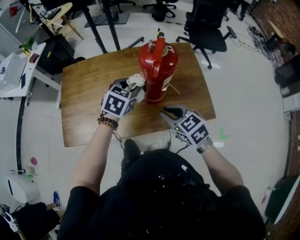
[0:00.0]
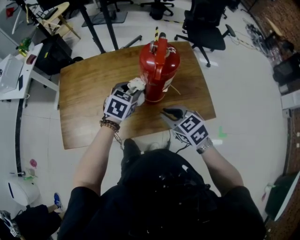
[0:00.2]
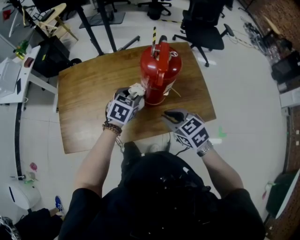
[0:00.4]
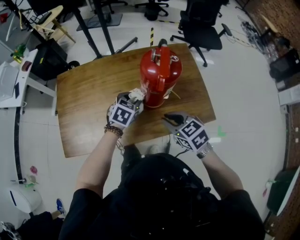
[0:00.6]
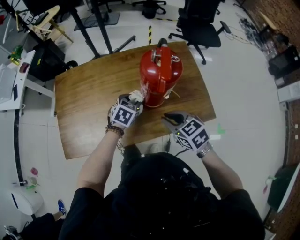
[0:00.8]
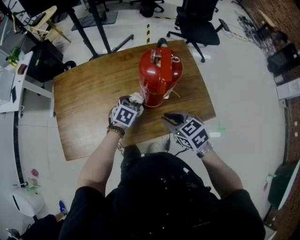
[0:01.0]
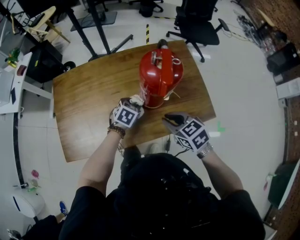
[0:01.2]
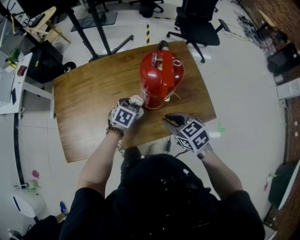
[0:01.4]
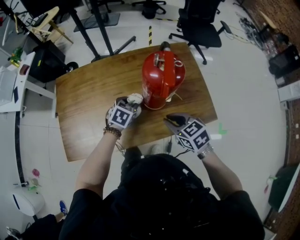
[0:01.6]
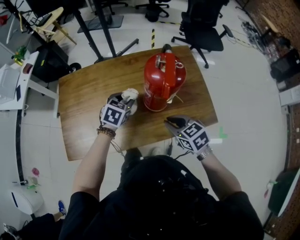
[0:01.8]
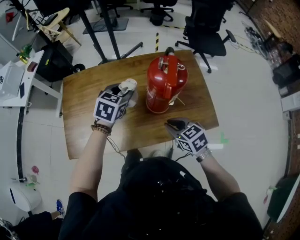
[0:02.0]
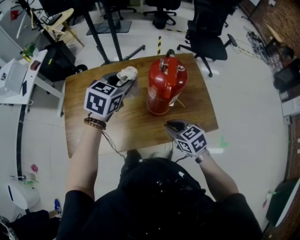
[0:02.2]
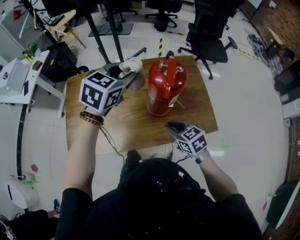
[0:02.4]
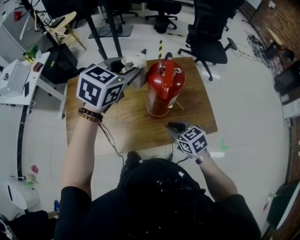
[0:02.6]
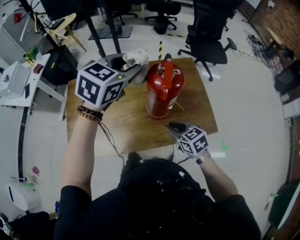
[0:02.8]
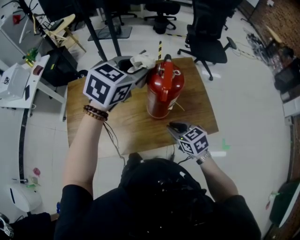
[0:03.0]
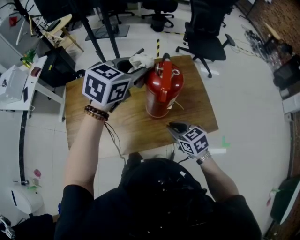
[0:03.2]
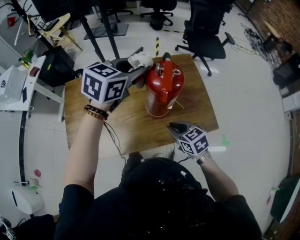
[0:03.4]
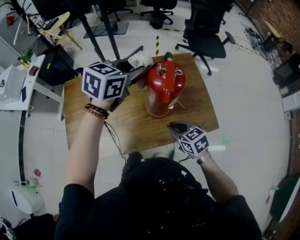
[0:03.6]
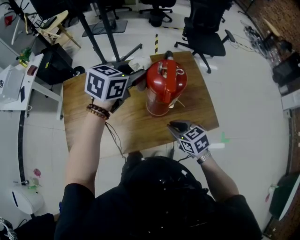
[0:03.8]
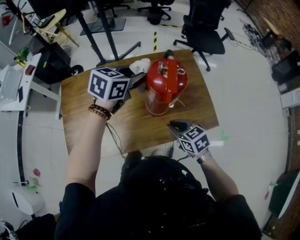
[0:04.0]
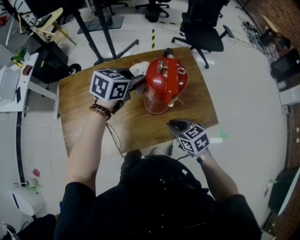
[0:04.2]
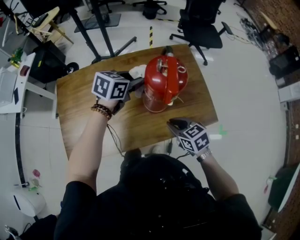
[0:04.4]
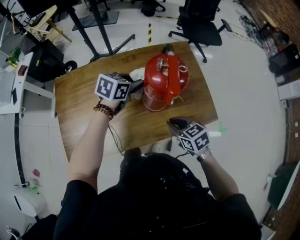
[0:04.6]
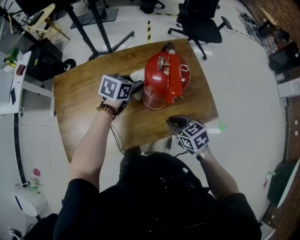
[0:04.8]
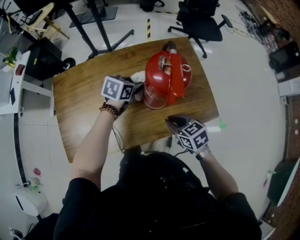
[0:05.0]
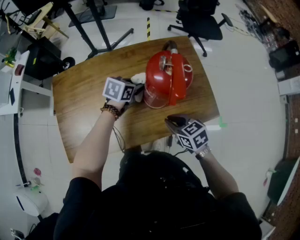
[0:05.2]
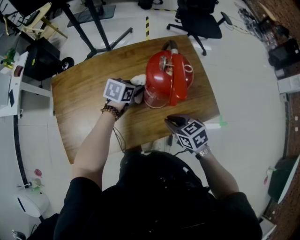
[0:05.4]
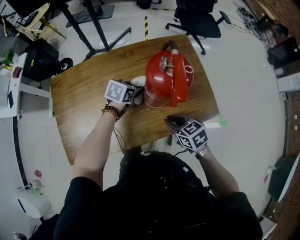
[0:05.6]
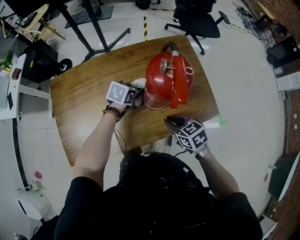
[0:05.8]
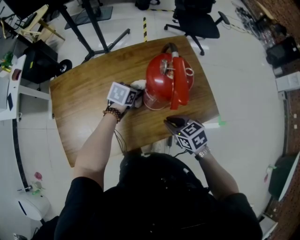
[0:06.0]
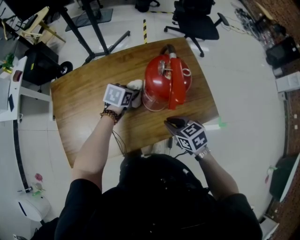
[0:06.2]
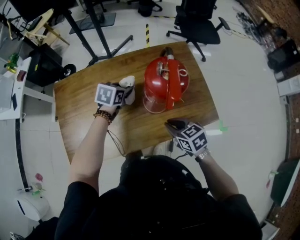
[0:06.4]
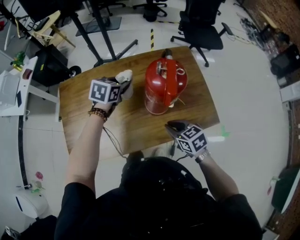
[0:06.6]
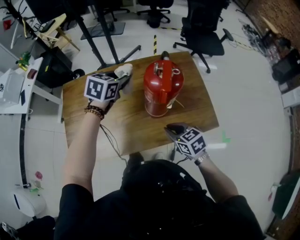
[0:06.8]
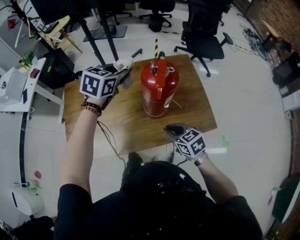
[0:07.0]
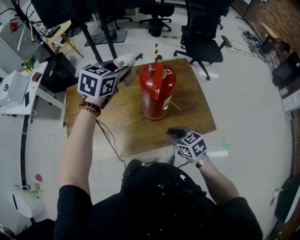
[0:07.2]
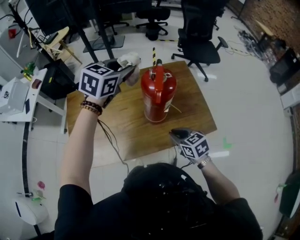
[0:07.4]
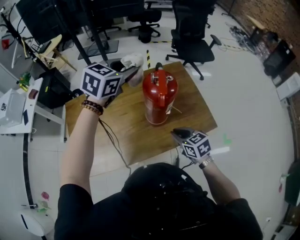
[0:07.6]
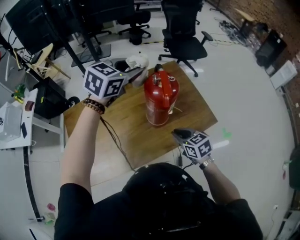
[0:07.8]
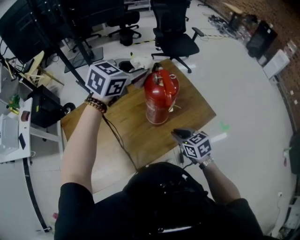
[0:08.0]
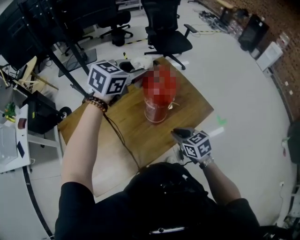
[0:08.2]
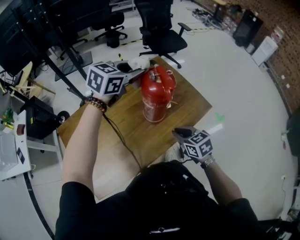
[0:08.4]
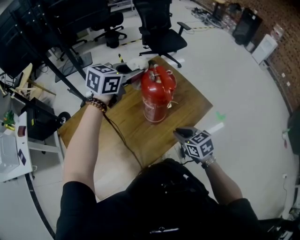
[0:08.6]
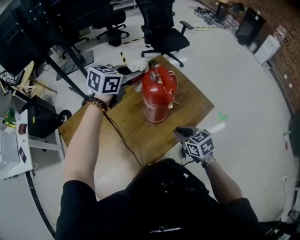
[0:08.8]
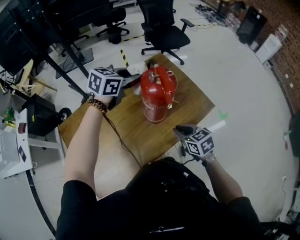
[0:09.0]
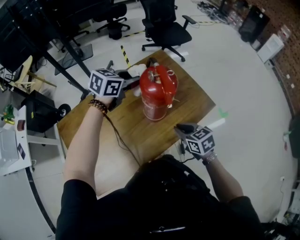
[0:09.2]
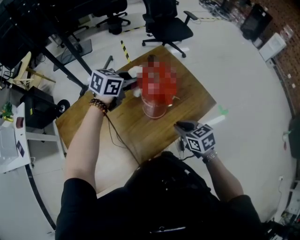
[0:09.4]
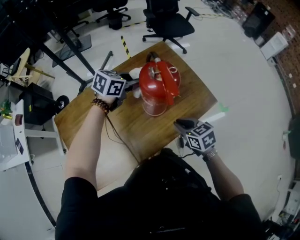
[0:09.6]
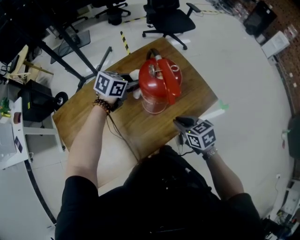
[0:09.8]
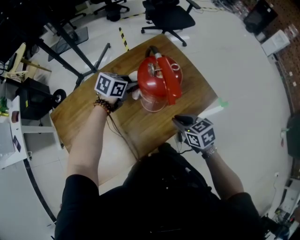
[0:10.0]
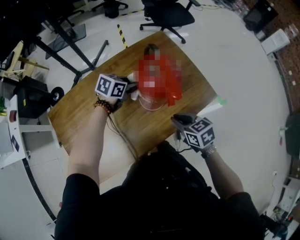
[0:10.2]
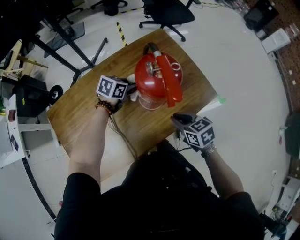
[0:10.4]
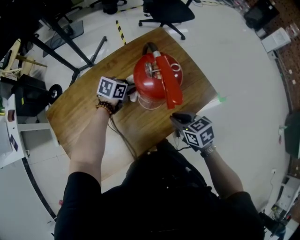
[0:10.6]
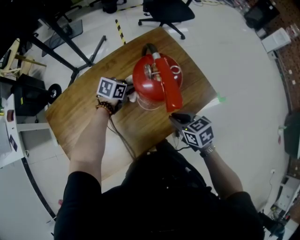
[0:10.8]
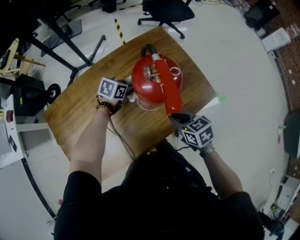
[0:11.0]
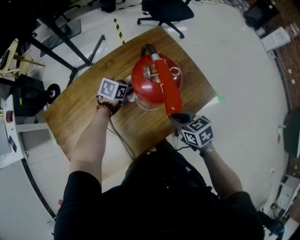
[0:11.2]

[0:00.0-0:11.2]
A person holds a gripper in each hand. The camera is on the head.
0:00.0 to 0:01.6: The left gripper heads downward, covering some 15 cm.
0:01.6 to 0:03.2: The left gripper moves upward, some 30 cm, and rotates roughly 30 degrees.
0:03.2 to 0:04.8: The left gripper is displaced downward by approximately 25 cm, and changes its angle by approximately 30 degrees.
0:04.8 to 0:06.4: The left gripper goes about 5 cm to the left.
0:06.4 to 0:08.0: The left gripper is displaced upward by roughly 30 cm, and rotates about 50 degrees.
0:08.0 to 0:09.6: The left gripper moves downward, approximately 20 cm, and turns by some 20 degrees.
0:09.6 to 0:11.2: The left gripper heads downward, covering some 15 cm.

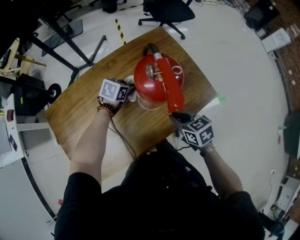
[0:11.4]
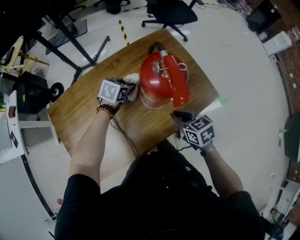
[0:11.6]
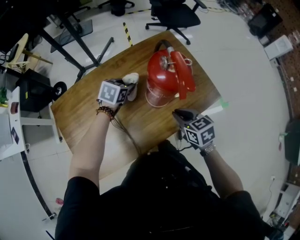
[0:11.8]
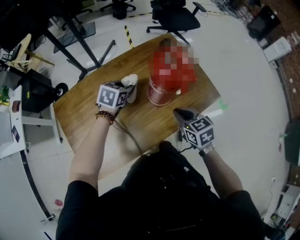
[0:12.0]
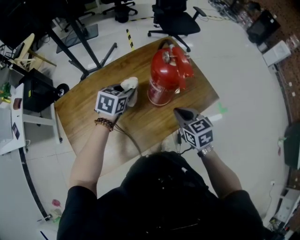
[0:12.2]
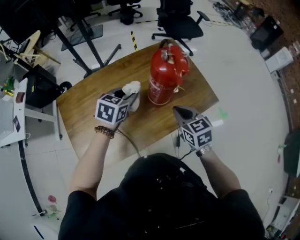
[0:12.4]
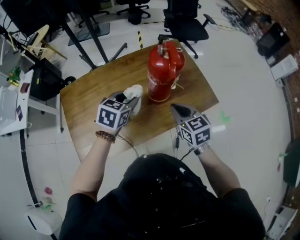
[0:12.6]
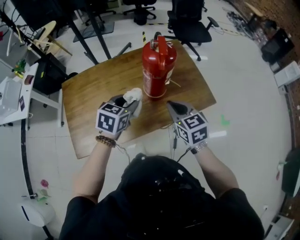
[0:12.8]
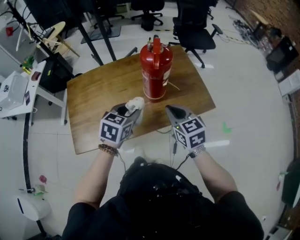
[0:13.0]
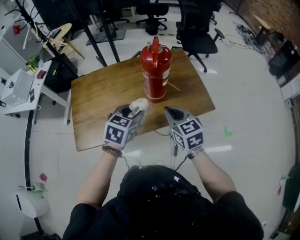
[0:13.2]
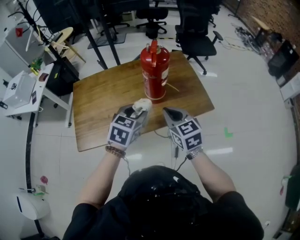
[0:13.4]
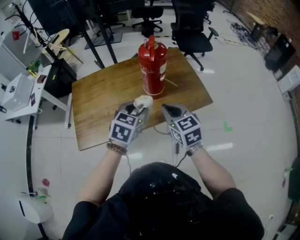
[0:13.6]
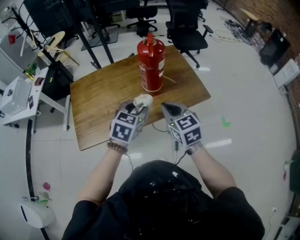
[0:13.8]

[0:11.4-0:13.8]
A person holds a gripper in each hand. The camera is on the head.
0:11.4 to 0:12.6: The left gripper heads backward and upward, covering approximately 25 cm, and changes its angle by roughly 20 degrees, while the right gripper heads upward, covering about 10 cm, and swivels roughly 20 degrees.
0:12.6 to 0:13.8: The right gripper shifts about 15 cm backward and upward. Meanwhile the left gripper goes about 20 cm backward and to the right.

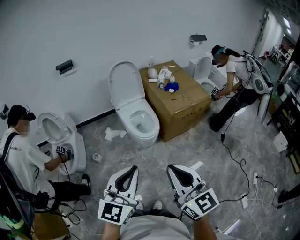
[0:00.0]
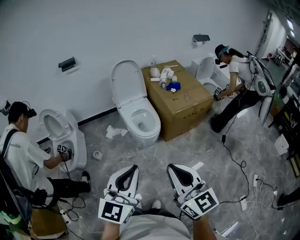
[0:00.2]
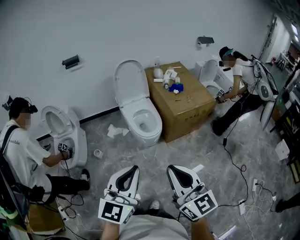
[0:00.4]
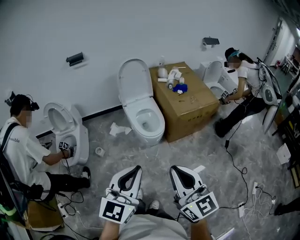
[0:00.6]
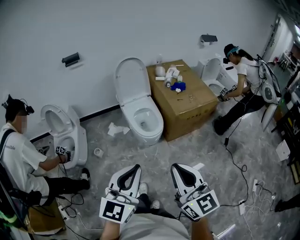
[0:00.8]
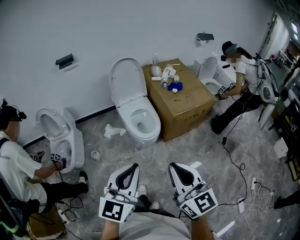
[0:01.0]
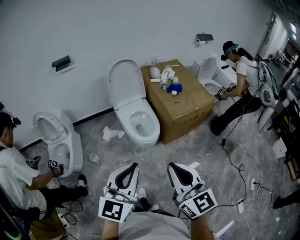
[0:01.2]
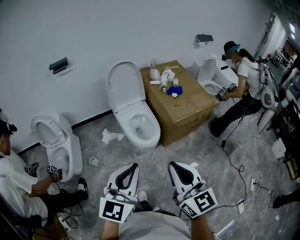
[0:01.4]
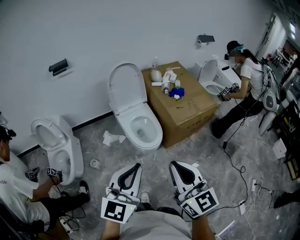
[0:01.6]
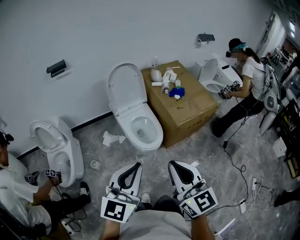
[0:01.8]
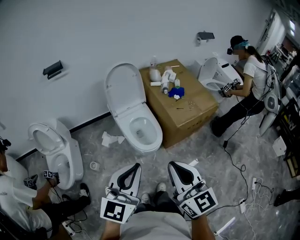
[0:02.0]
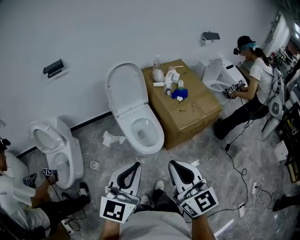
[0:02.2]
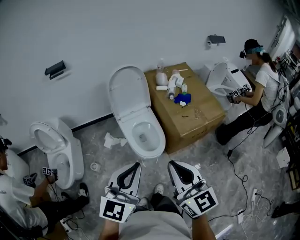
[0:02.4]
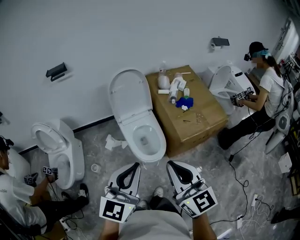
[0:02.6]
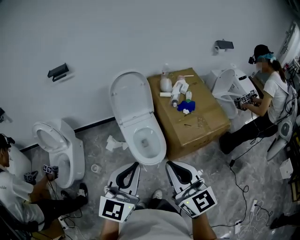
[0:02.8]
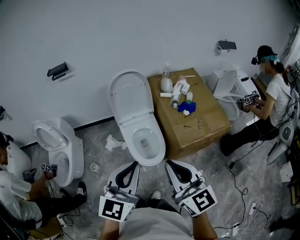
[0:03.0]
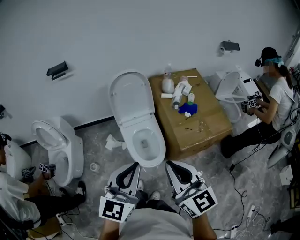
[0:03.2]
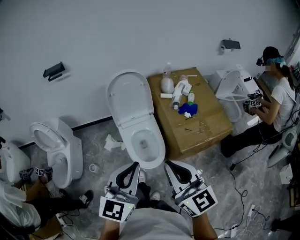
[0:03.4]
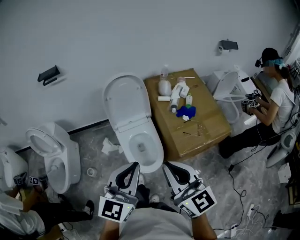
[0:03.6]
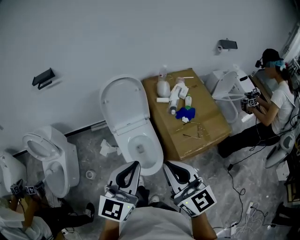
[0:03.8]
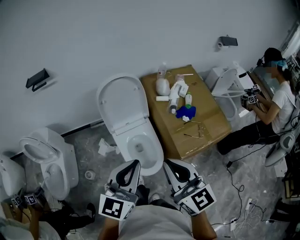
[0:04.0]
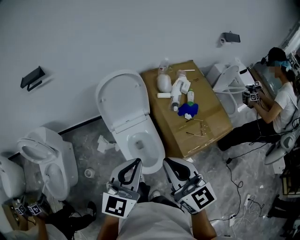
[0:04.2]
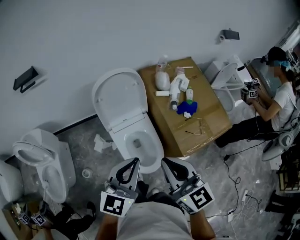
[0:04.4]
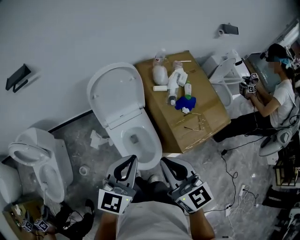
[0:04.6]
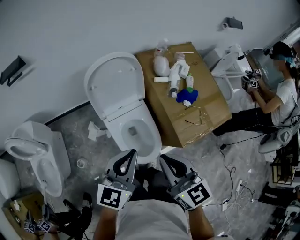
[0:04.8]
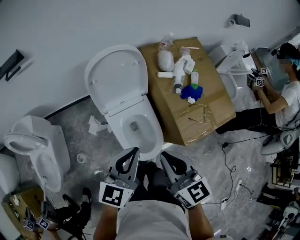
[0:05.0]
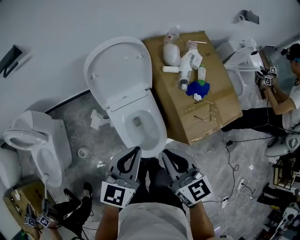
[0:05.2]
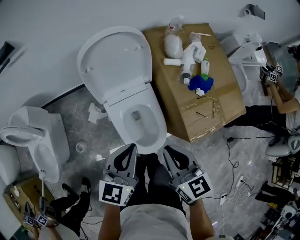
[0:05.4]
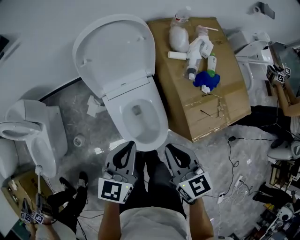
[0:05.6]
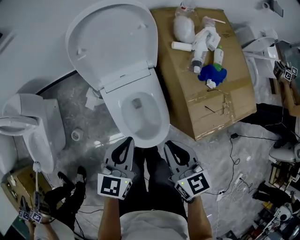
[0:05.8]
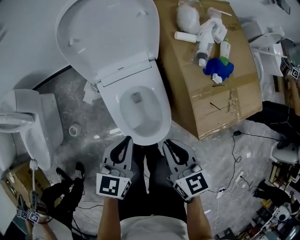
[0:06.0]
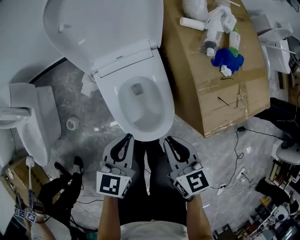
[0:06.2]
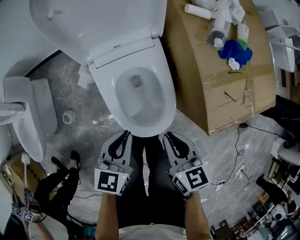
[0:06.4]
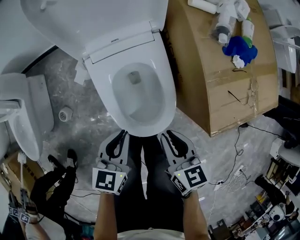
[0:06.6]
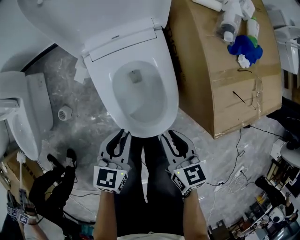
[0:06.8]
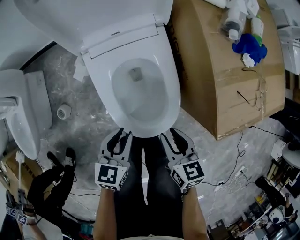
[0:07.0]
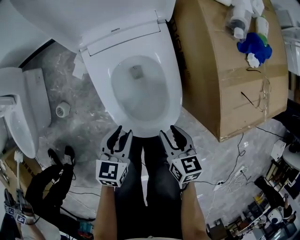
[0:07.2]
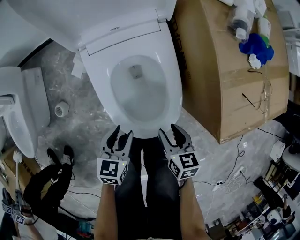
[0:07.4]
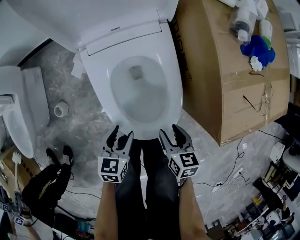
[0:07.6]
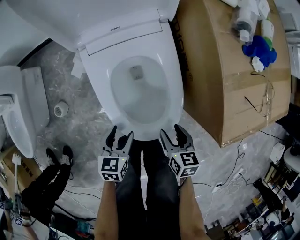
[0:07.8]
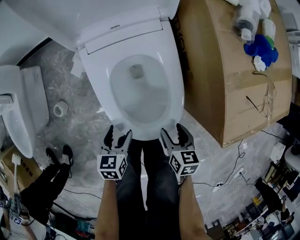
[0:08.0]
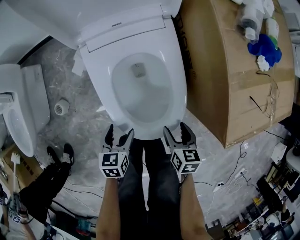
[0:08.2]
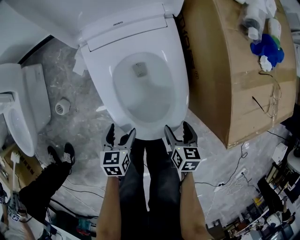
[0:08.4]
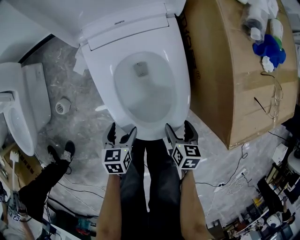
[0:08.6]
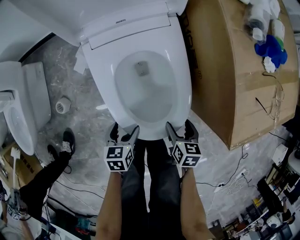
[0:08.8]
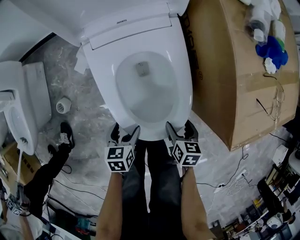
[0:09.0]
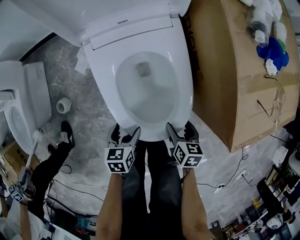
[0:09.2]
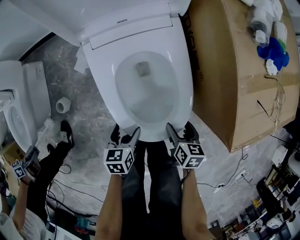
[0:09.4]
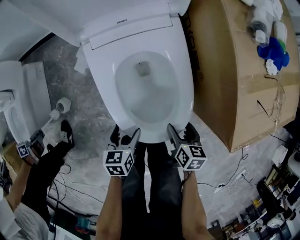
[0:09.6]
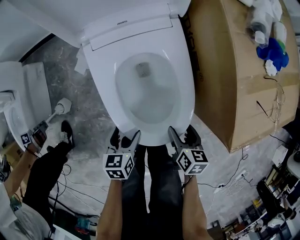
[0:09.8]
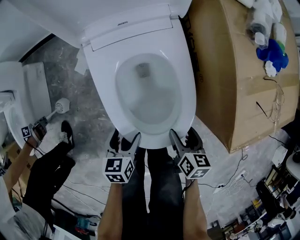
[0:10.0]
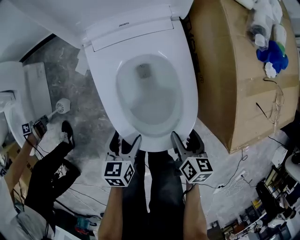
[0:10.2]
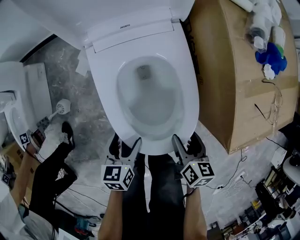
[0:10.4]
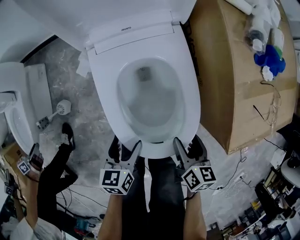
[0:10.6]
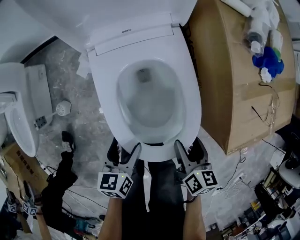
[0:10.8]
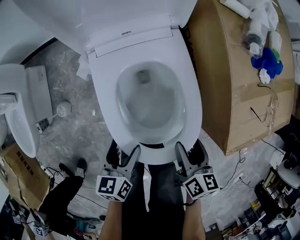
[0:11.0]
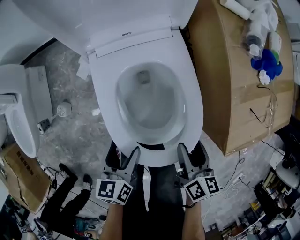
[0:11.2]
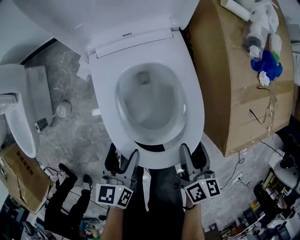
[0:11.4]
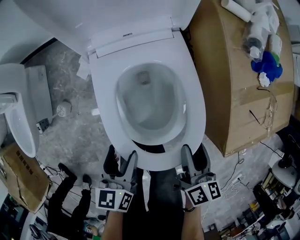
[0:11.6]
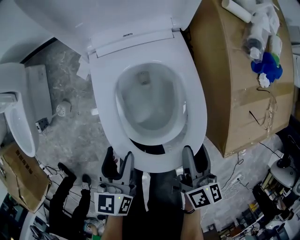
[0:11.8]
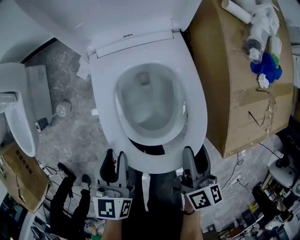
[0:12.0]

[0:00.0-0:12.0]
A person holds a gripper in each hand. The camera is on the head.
0:00.0 to 0:01.6: Both grippers move forward, some 15 cm.
0:01.6 to 0:03.0: The grippers both shift forward by approximately 20 cm.
0:03.0 to 0:04.4: Both grippers travel together forward, roughly 25 cm.
0:04.4 to 0:06.0: The grippers both shift downward by some 30 cm. The right gripper rotates some 30 degrees; the left gripper turns by about 20 degrees.
0:06.0 to 0:07.6: The grippers both shift downward by some 30 cm. The right gripper turns by about 20 degrees, and opens up. Meanwhile the left gripper rotates about 20 degrees, and opens.
0:07.6 to 0:09.0: Both grippers move downward, approximately 10 cm. The left gripper opens up, while the right gripper opens its fingers.
0:09.0 to 0:10.4: Both grippers travel together upward, about 10 cm.
0:10.4 to 0:12.0: Both grippers travel together upward, some 15 cm. The left gripper closes its fingers. The right gripper turns by approximately 20 degrees.
